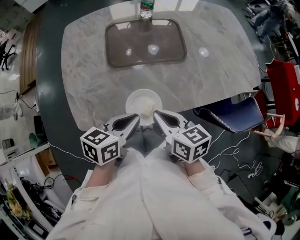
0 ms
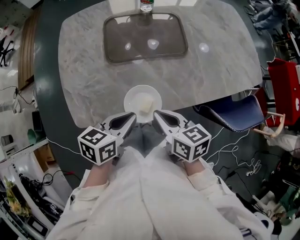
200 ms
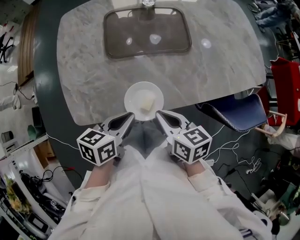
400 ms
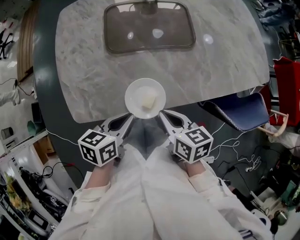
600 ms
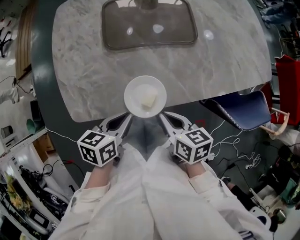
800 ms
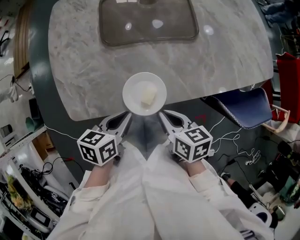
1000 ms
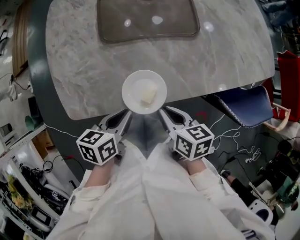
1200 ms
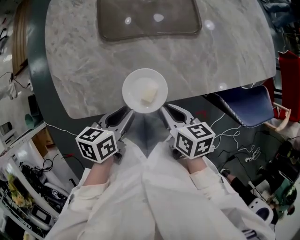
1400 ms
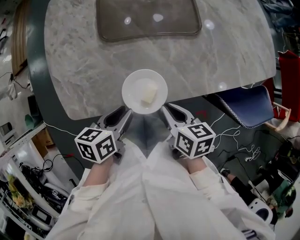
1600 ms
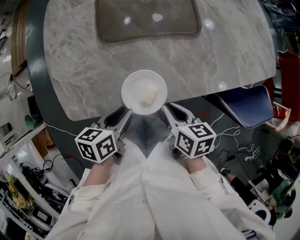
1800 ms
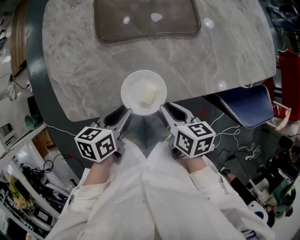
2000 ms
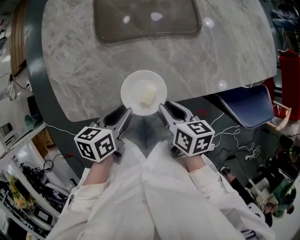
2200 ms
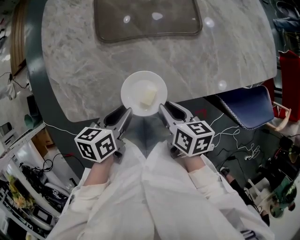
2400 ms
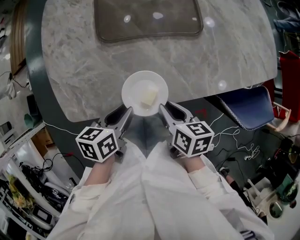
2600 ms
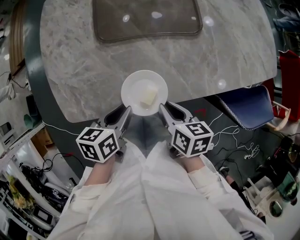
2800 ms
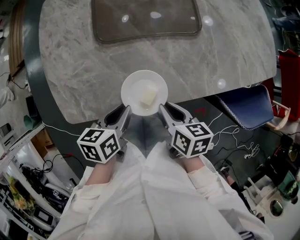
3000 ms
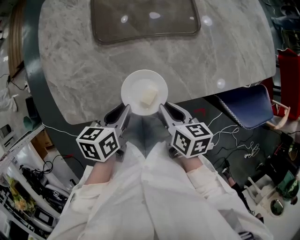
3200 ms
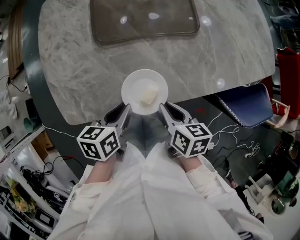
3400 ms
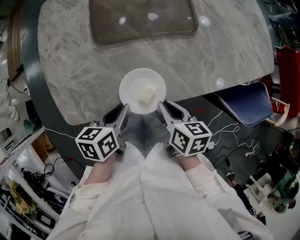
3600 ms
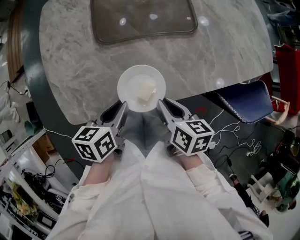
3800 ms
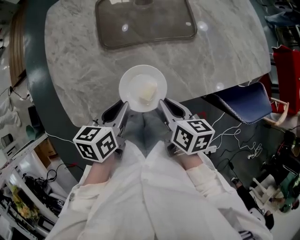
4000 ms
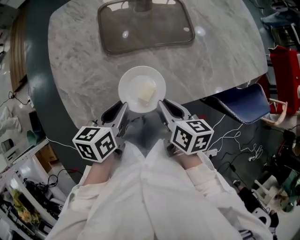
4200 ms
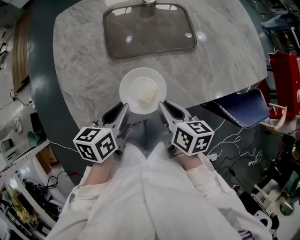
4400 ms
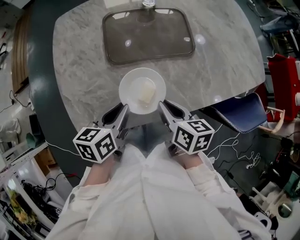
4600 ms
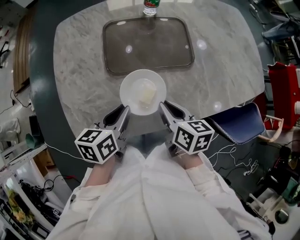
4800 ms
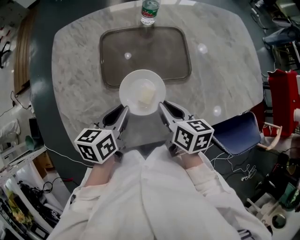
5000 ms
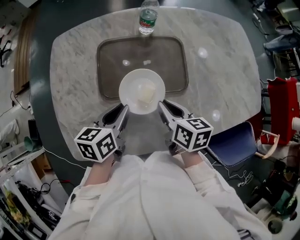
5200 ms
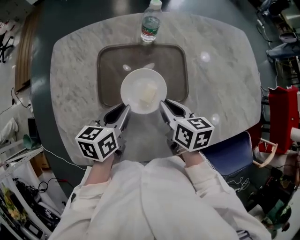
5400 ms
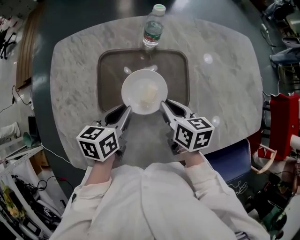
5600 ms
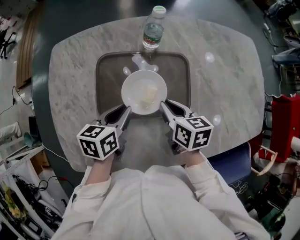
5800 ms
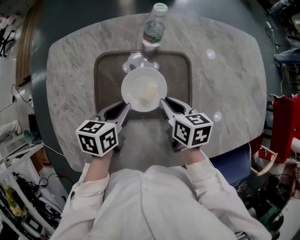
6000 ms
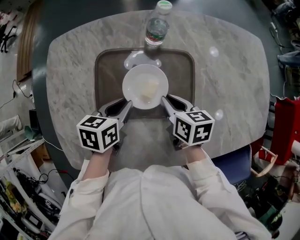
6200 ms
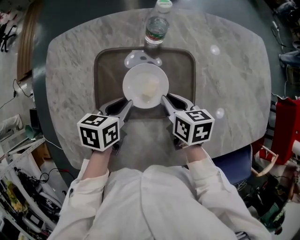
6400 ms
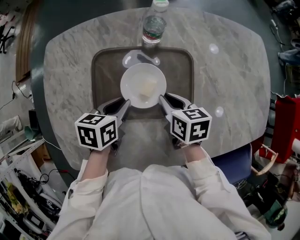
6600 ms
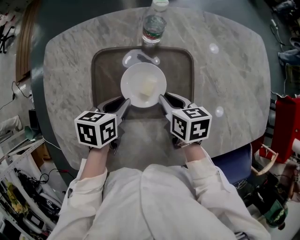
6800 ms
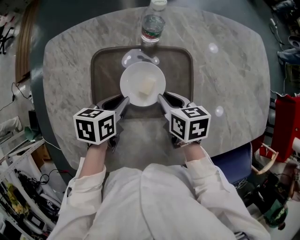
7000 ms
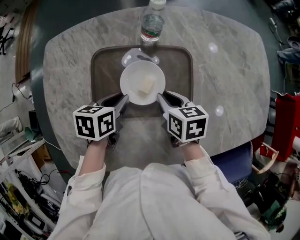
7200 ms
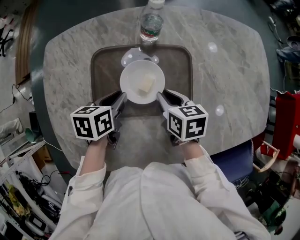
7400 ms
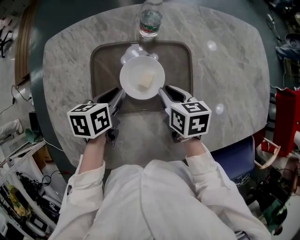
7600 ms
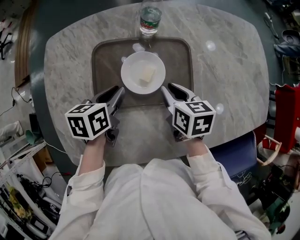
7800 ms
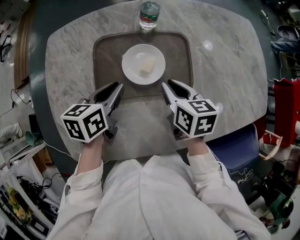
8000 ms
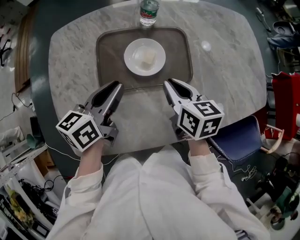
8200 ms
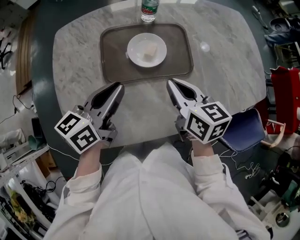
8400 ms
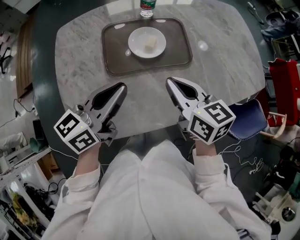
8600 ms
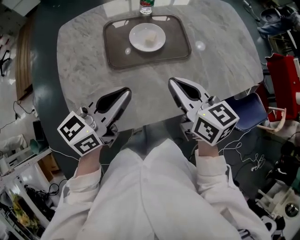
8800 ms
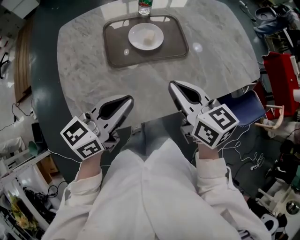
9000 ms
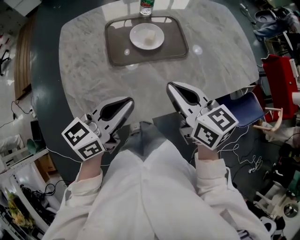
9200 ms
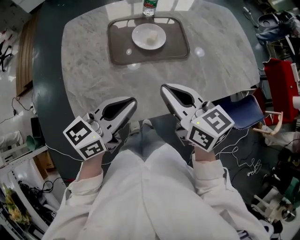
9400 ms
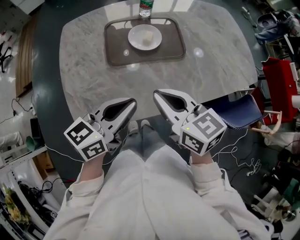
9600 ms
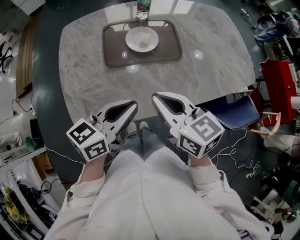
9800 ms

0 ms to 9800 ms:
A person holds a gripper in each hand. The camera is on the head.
0 ms to 1400 ms: Both grippers move downward, some 10 cm.
1400 ms to 2800 ms: There are only small adjustments of the grippers.
2800 ms to 4200 ms: The left gripper goes roughly 5 cm upward. Meanwhile the right gripper shifts by roughly 5 cm.
4200 ms to 5600 ms: Both grippers travel together forward, about 25 cm.
5600 ms to 7000 ms: The two grippers go roughly 5 cm downward.
7000 ms to 8400 ms: The two grippers go about 20 cm upward and backward. The right gripper swivels roughly 20 degrees; the left gripper points its fingers about 30 degrees further upward.
8400 ms to 9800 ms: The right gripper moves backward and upward, roughly 20 cm; the left gripper travels backward by about 15 cm.

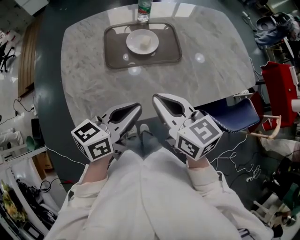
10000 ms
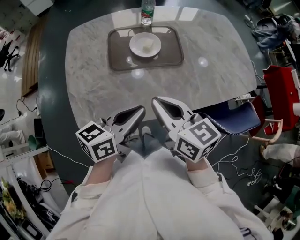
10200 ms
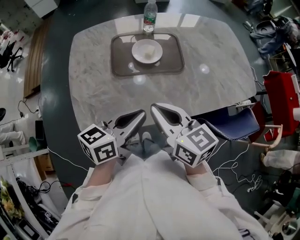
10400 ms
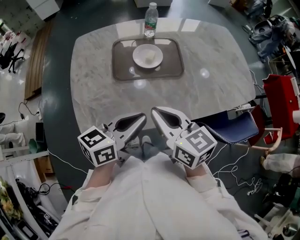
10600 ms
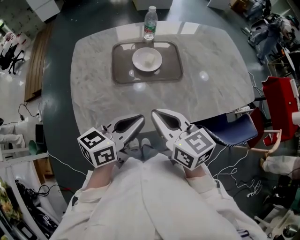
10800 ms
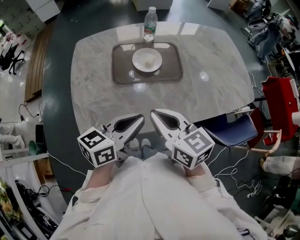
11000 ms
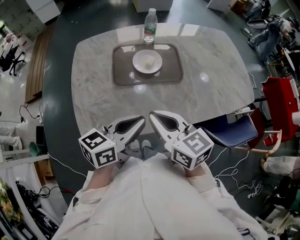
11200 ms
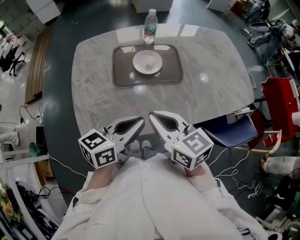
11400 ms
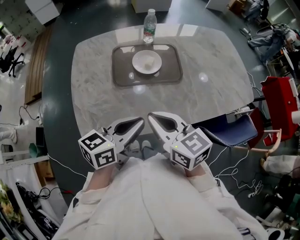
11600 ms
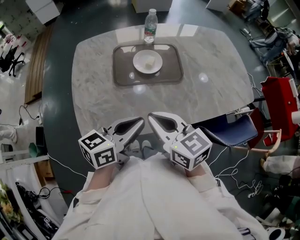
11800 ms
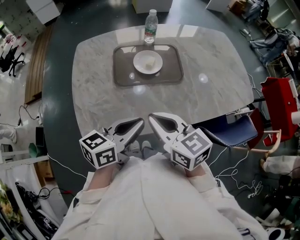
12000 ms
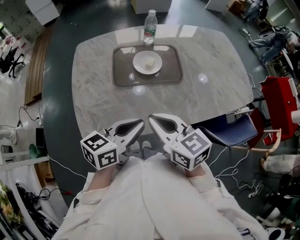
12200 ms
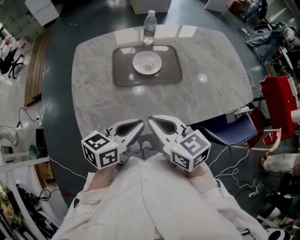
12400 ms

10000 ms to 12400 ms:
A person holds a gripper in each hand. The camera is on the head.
10000 ms to 12400 ms: The grippers make only small movements.

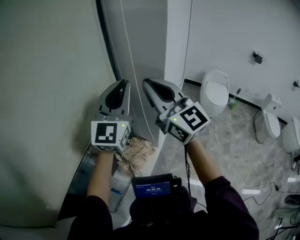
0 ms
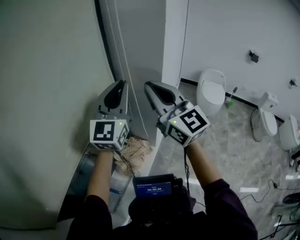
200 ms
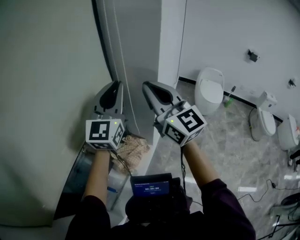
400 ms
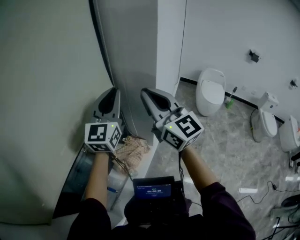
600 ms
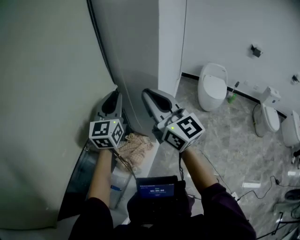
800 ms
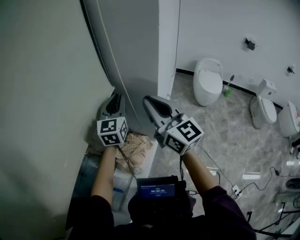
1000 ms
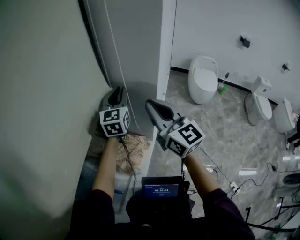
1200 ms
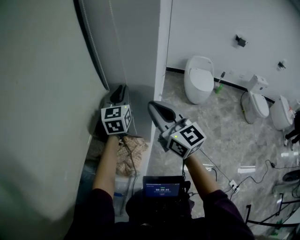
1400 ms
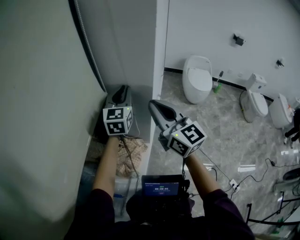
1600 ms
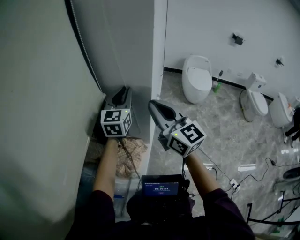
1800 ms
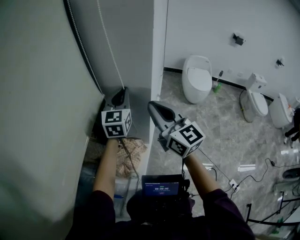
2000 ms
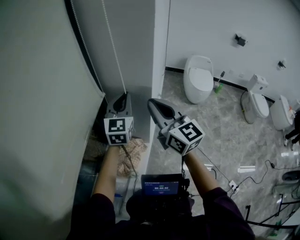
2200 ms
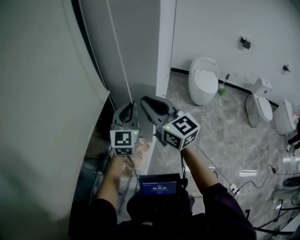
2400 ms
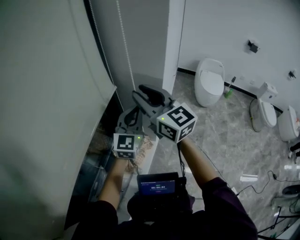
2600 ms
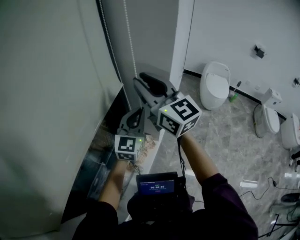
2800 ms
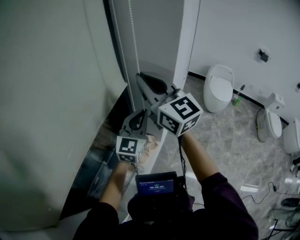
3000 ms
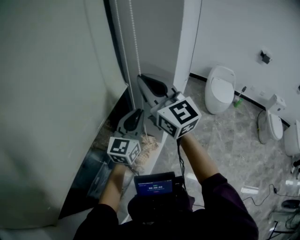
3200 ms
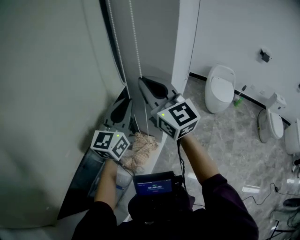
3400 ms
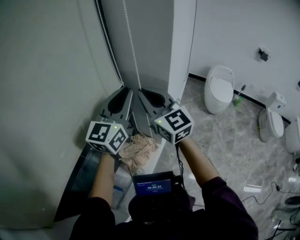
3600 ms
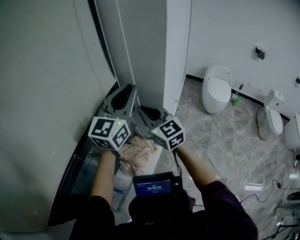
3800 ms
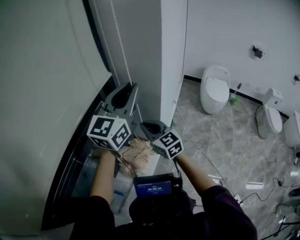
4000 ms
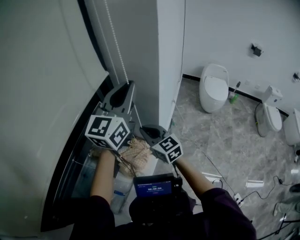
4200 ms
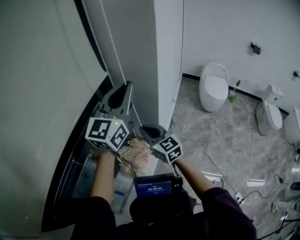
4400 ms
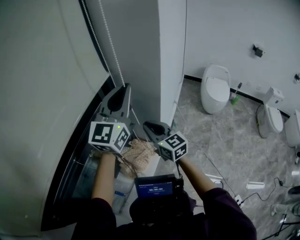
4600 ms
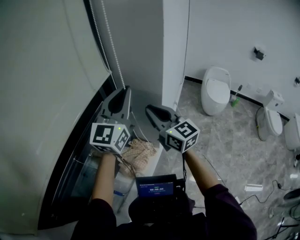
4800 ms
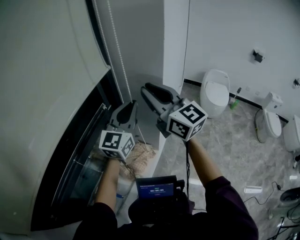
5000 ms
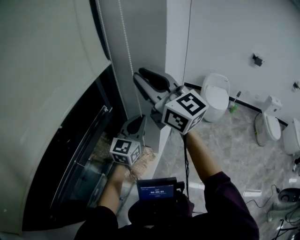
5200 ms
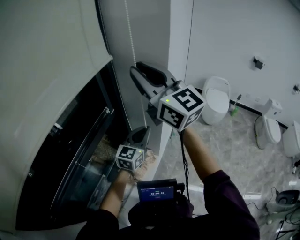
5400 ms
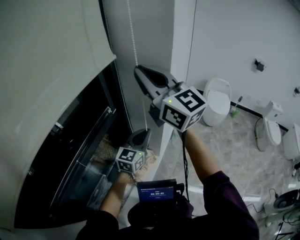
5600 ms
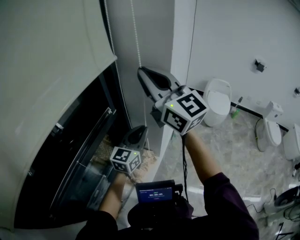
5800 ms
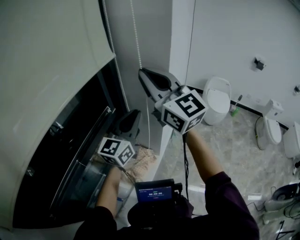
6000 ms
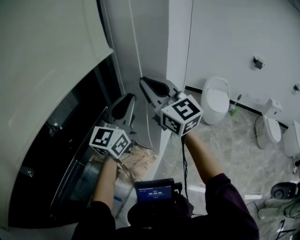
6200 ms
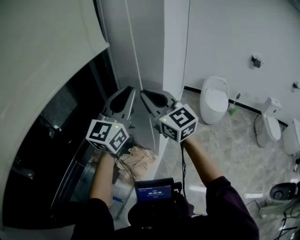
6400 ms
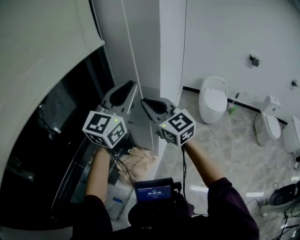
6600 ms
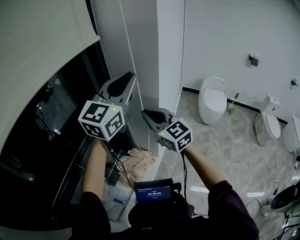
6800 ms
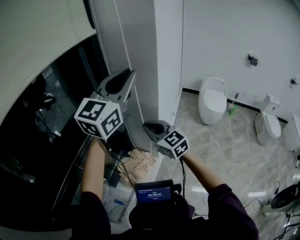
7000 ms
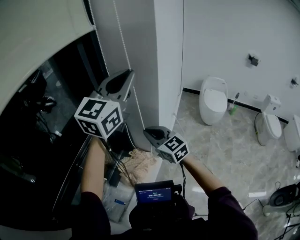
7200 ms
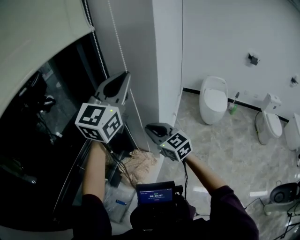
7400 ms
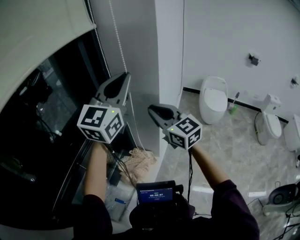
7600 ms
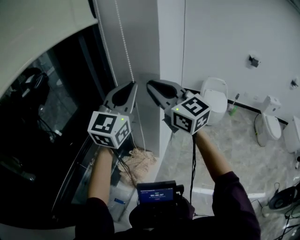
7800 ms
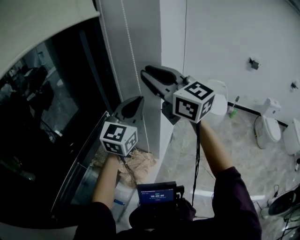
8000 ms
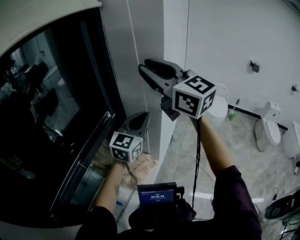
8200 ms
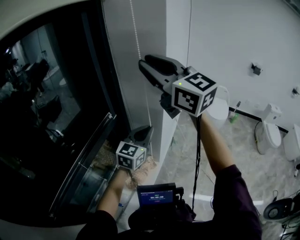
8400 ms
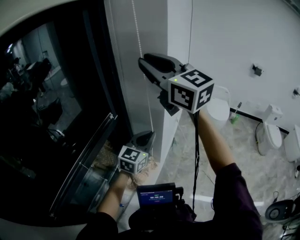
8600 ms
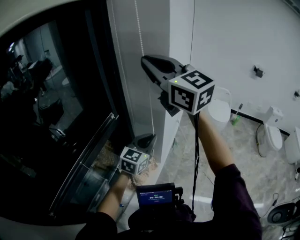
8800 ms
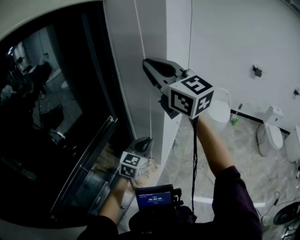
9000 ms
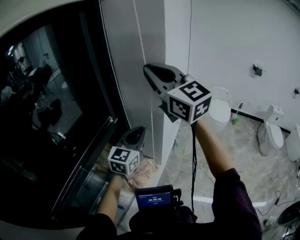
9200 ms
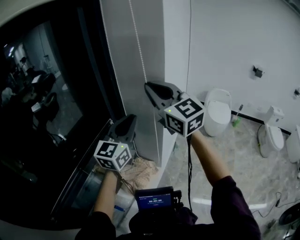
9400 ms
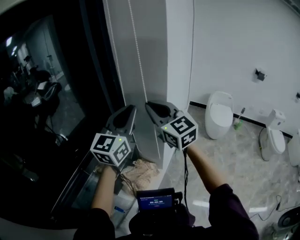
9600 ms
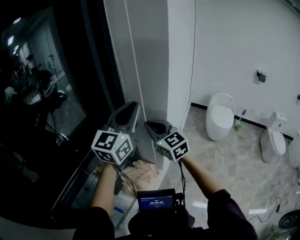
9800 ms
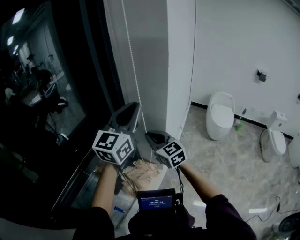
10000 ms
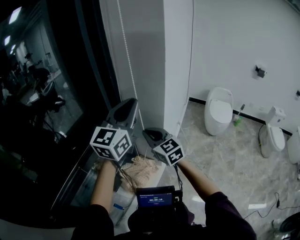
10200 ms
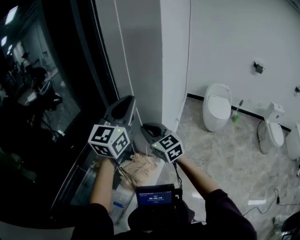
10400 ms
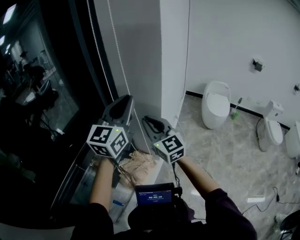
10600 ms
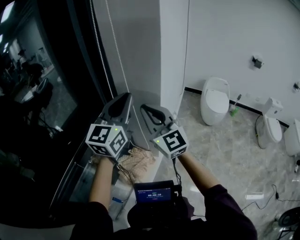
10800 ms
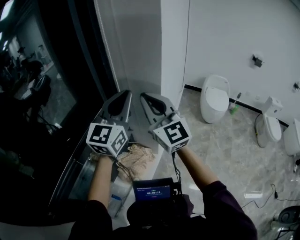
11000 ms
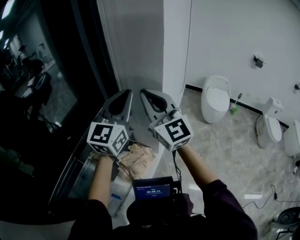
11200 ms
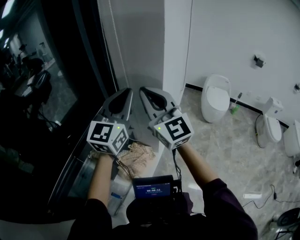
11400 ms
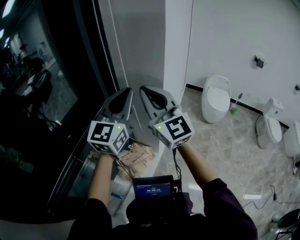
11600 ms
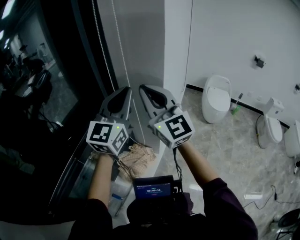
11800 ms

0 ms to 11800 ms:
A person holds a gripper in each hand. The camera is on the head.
0 ms to 1400 ms: The right gripper shifts some 10 cm downward, while the left gripper travels downward and forward by some 20 cm, and changes its angle by approximately 30 degrees.
1400 ms to 3000 ms: The left gripper is displaced backward by roughly 10 cm. Meanwhile the right gripper heads upward and to the left, covering approximately 10 cm.
3000 ms to 4400 ms: The left gripper shifts roughly 15 cm upward, while the right gripper shifts approximately 25 cm downward, and swivels roughly 20 degrees.
4400 ms to 6000 ms: The left gripper shifts roughly 10 cm downward, while the right gripper is displaced upward by some 30 cm, and changes its angle by some 30 degrees.
6000 ms to 7400 ms: The right gripper is displaced downward by some 25 cm, and changes its angle by roughly 30 degrees, while the left gripper goes roughly 15 cm upward.
7400 ms to 8800 ms: The left gripper goes approximately 25 cm downward, and swivels about 30 degrees; the right gripper goes roughly 30 cm upward, and changes its angle by some 20 degrees.
8800 ms to 10400 ms: The left gripper is displaced upward by about 20 cm, and rotates roughly 20 degrees. The right gripper travels downward by some 30 cm, and turns by roughly 20 degrees.
10400 ms to 11800 ms: The right gripper shifts roughly 20 cm upward, and swivels roughly 30 degrees.
